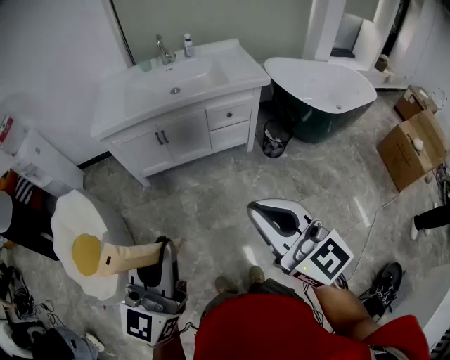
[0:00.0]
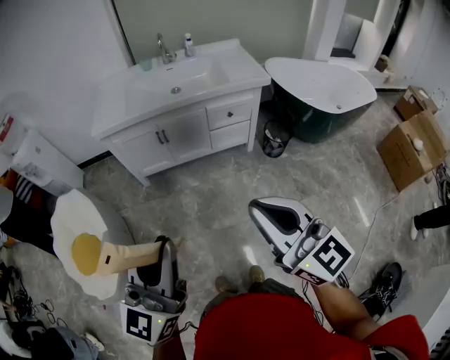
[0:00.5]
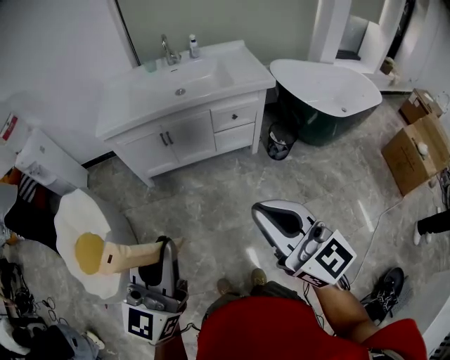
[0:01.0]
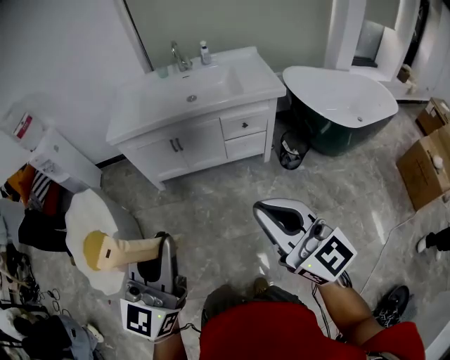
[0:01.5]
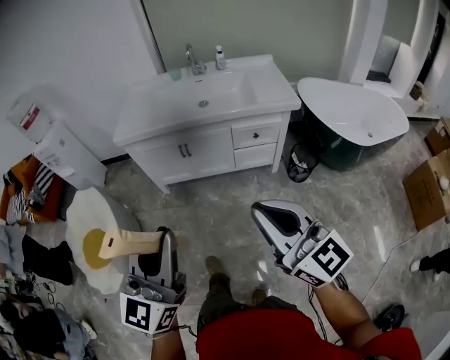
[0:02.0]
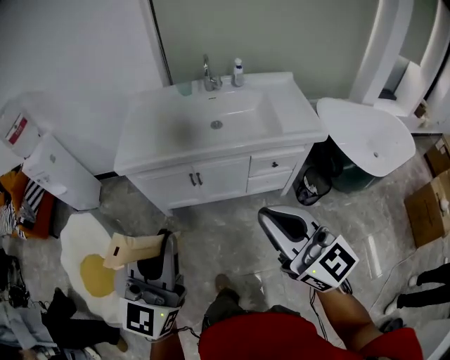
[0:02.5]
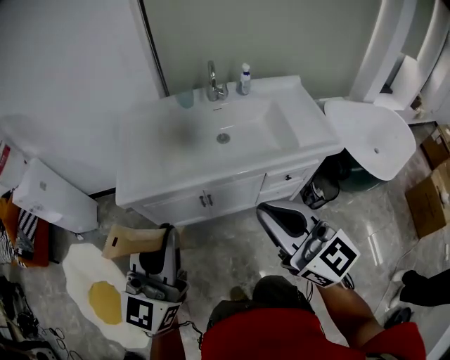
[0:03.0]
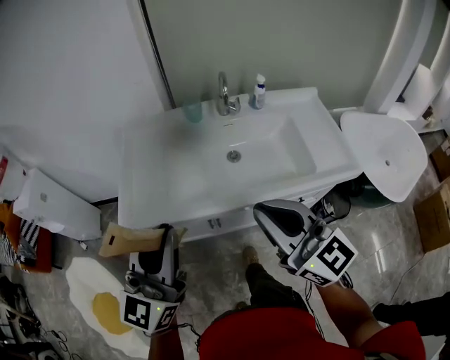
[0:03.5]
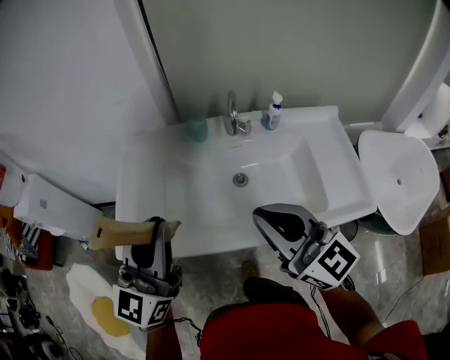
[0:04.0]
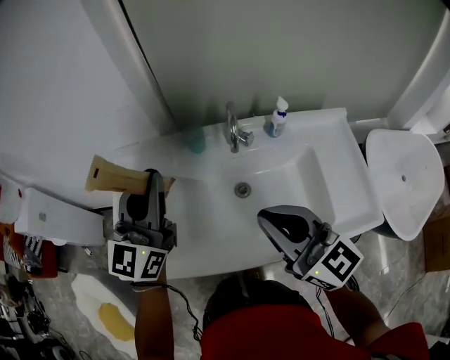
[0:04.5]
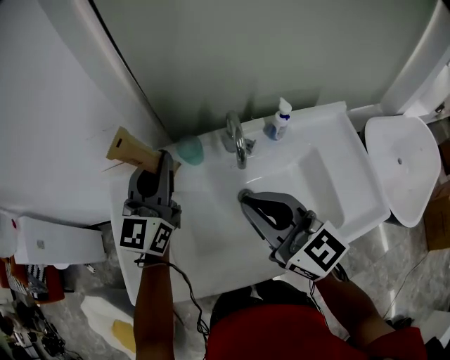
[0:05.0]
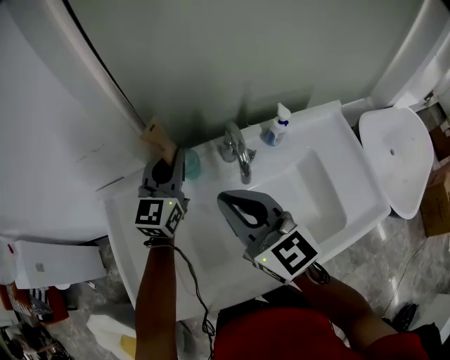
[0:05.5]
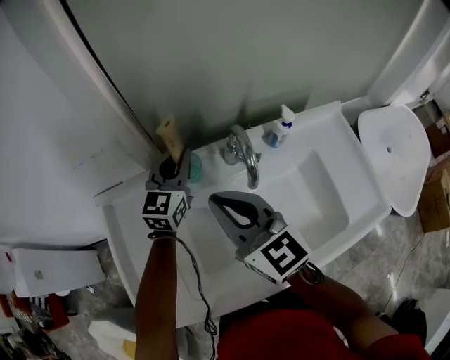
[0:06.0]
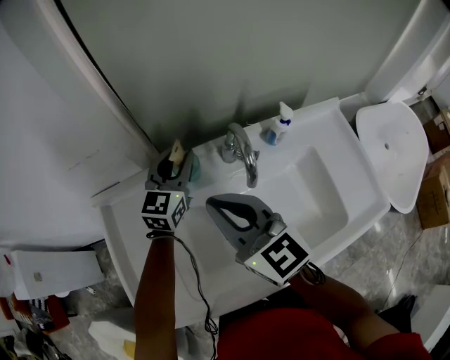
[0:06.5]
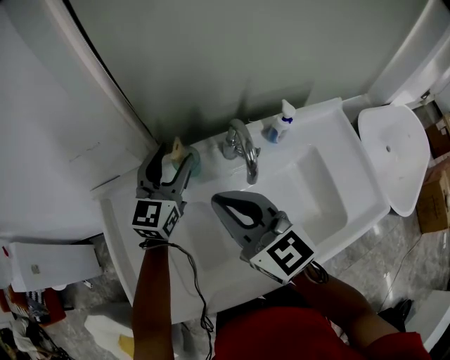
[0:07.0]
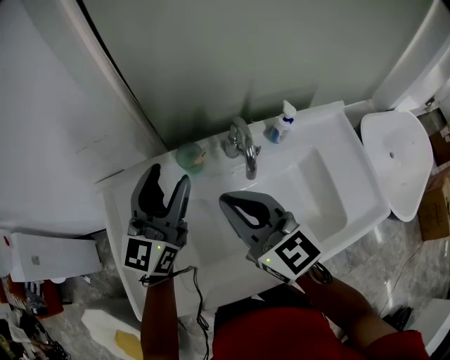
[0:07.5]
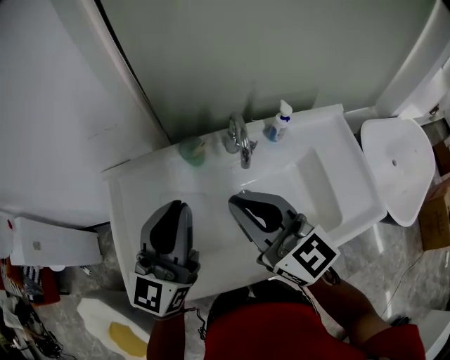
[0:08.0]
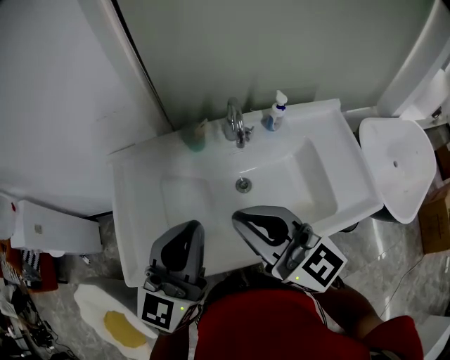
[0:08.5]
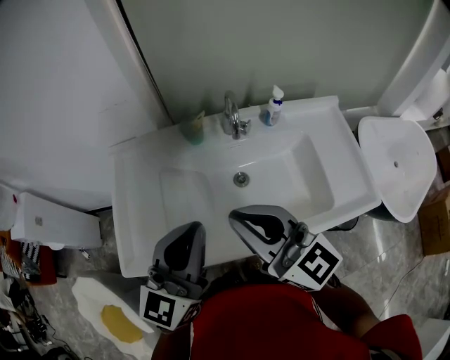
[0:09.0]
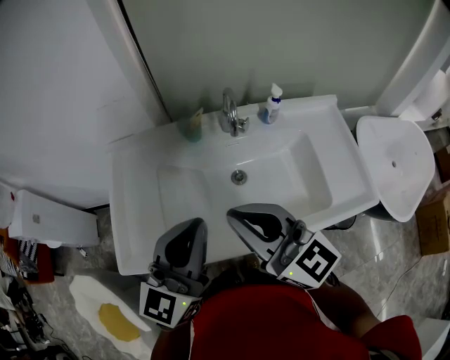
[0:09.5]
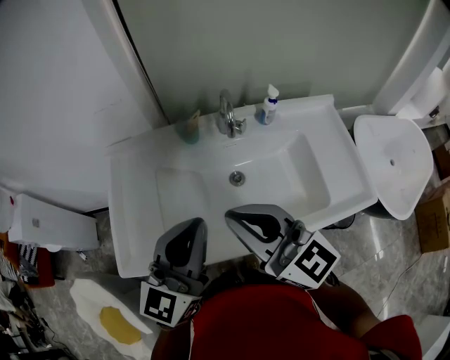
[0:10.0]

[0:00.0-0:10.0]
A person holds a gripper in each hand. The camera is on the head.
0:00.0 to 0:02.0: Both grippers move forward, roughly 10 cm.
0:02.0 to 0:04.0: The pair of grippers is taken forward, roughly 60 cm.
0:04.0 to 0:06.0: The right gripper goes about 25 cm forward, and changes its angle by some 20 degrees; the left gripper is displaced forward by roughly 40 cm, and rotates about 20 degrees.
0:06.0 to 0:08.0: The left gripper heads backward and upward, covering some 25 cm, changes its angle by roughly 20 degrees, and opens, then closes again, while the right gripper is displaced backward and upward by roughly 10 cm.
0:08.0 to 0:10.0: The grippers both shift backward by some 10 cm.

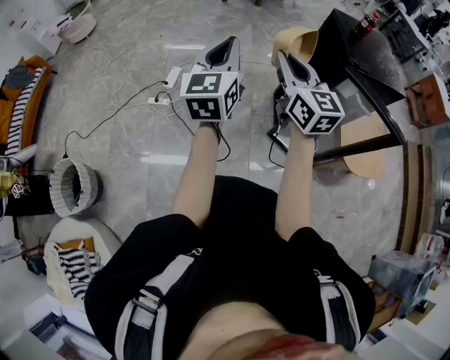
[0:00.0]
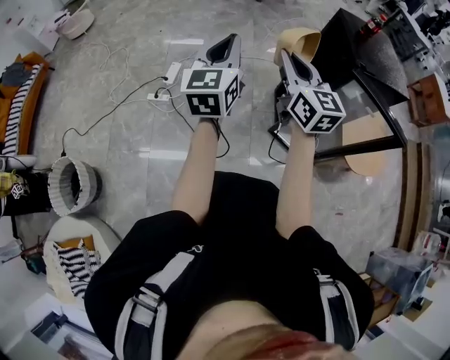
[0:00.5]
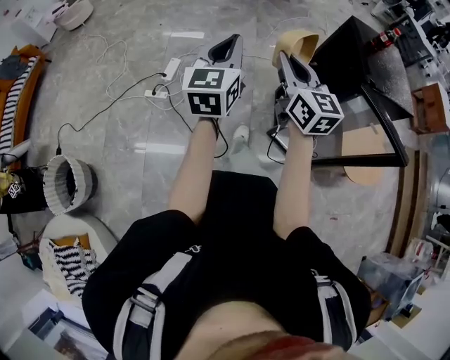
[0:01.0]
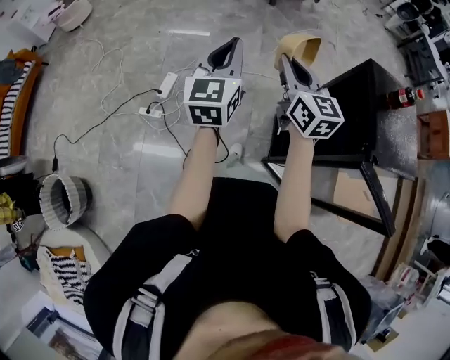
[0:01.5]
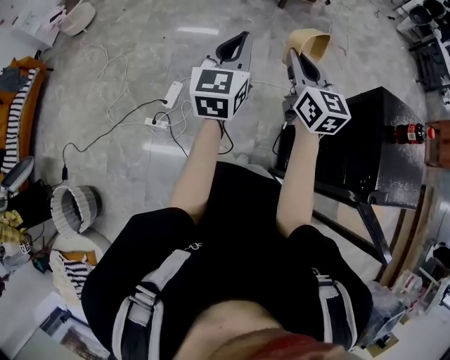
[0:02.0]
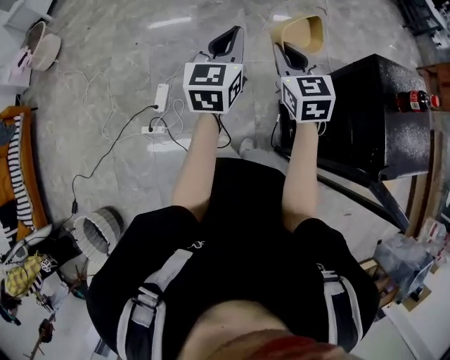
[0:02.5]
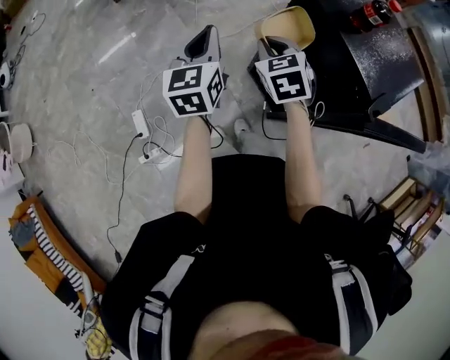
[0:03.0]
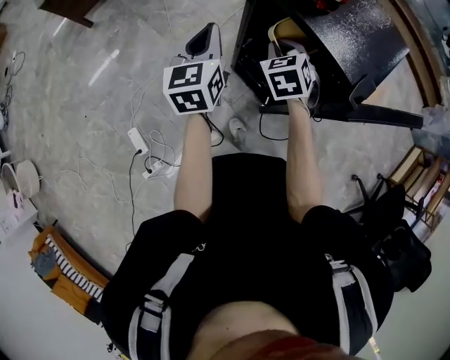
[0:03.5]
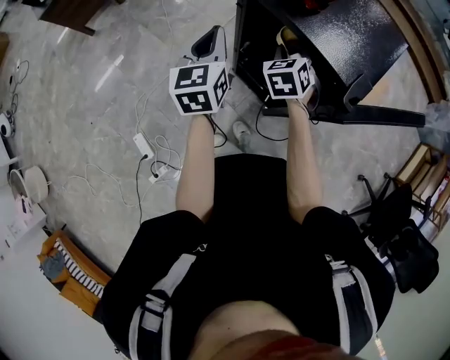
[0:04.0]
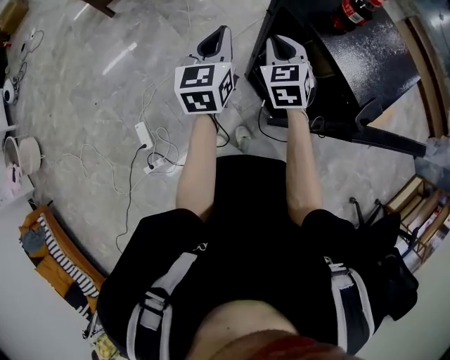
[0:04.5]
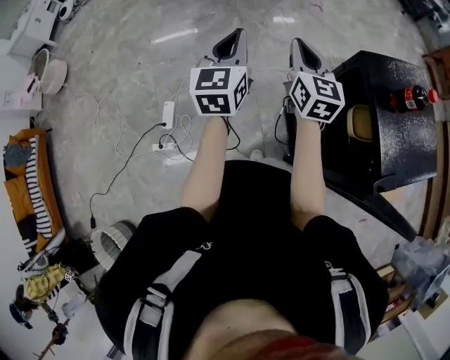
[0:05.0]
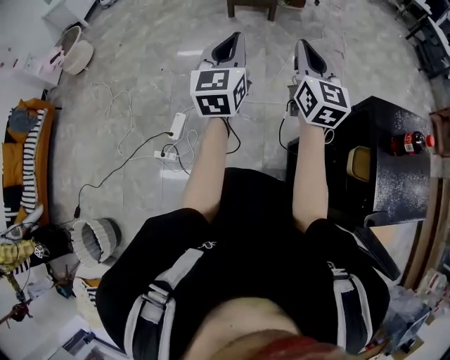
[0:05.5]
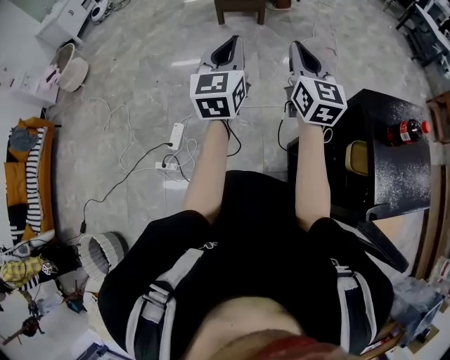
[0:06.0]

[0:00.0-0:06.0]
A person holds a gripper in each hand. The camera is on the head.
0:00.0 to 0:02.0: Both grippers are carried forward, some 40 cm.
0:02.0 to 0:04.0: The left gripper changes place by about 35 cm, and turns by roughly 50 degrees. The right gripper shifts by about 40 cm, and tilts its fingers about 40 degrees downward.
0:04.0 to 0:06.0: The left gripper moves about 30 cm, and swivels approximately 40 degrees. The right gripper moves about 40 cm, and angles its fingers upward, by about 50 degrees.

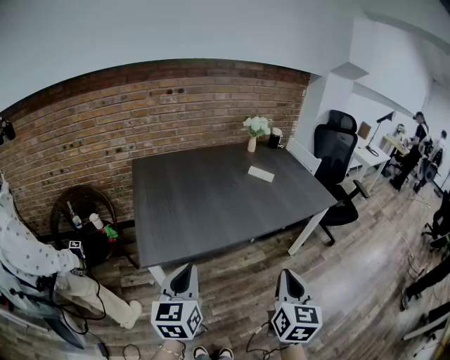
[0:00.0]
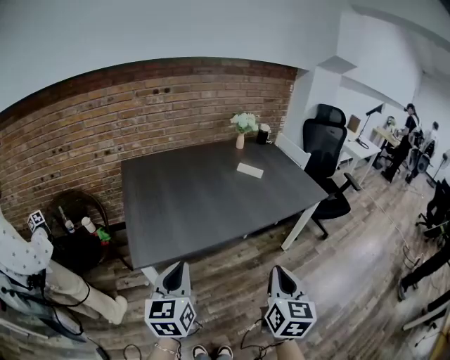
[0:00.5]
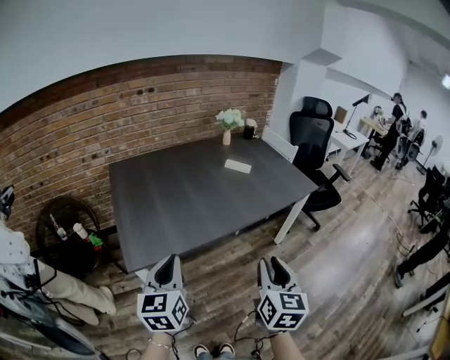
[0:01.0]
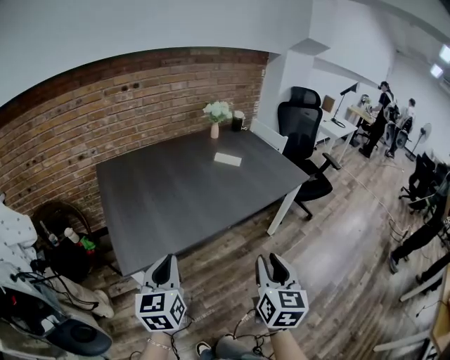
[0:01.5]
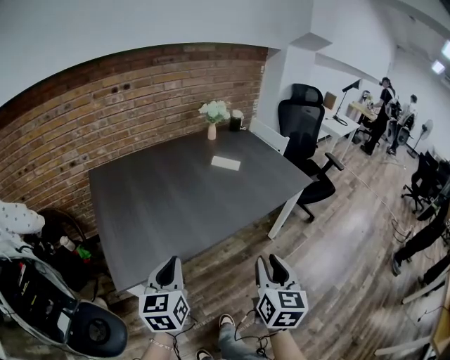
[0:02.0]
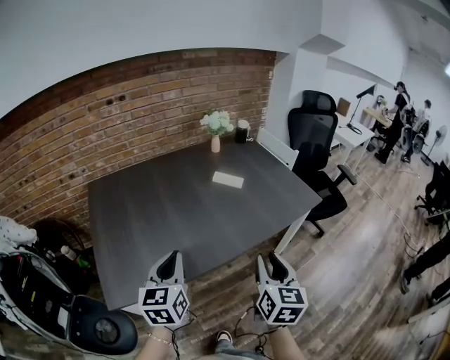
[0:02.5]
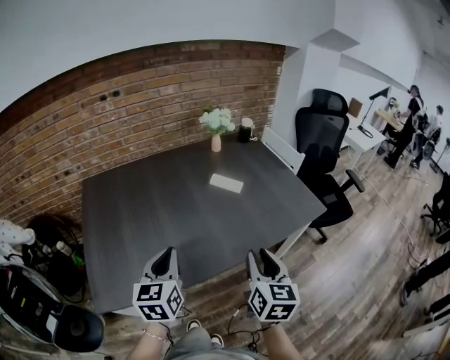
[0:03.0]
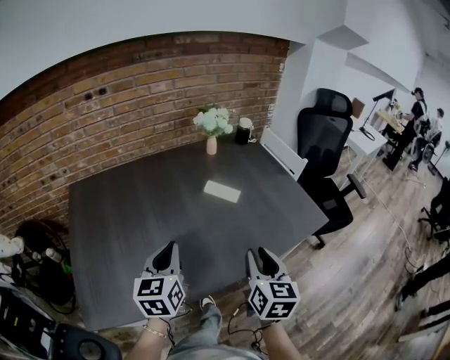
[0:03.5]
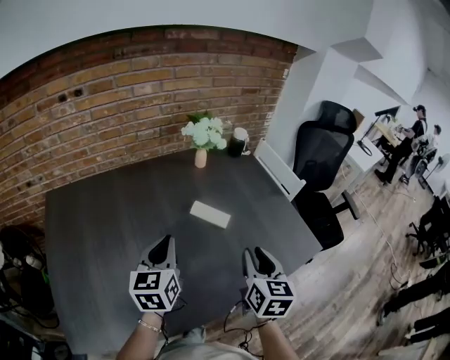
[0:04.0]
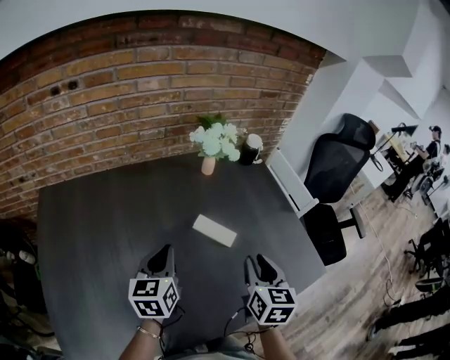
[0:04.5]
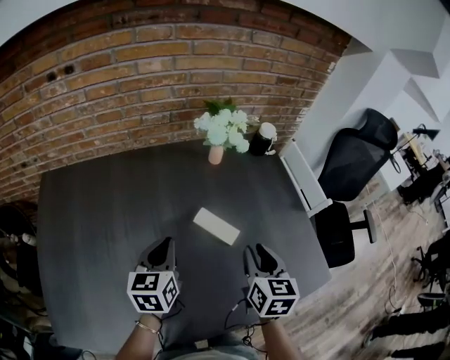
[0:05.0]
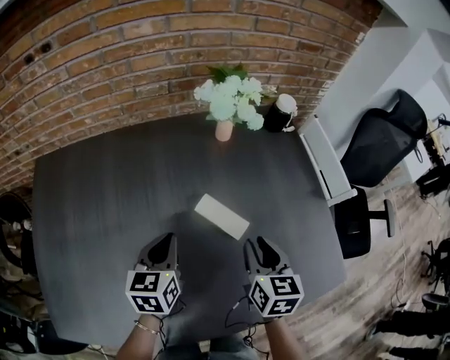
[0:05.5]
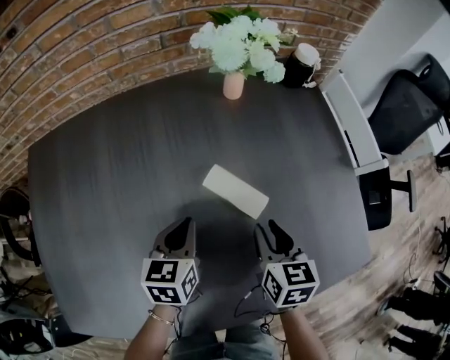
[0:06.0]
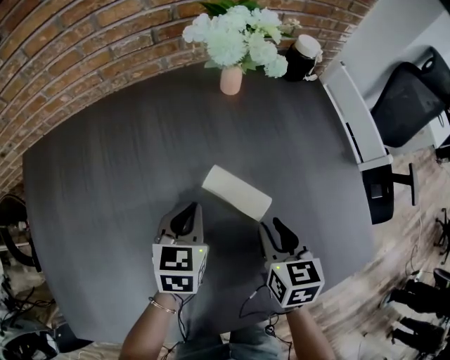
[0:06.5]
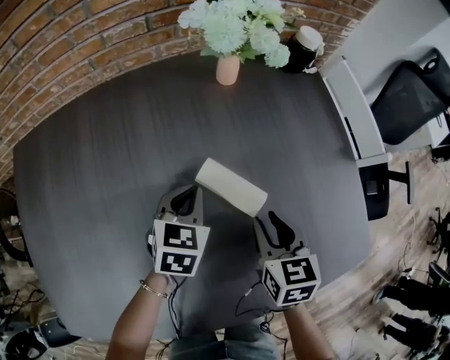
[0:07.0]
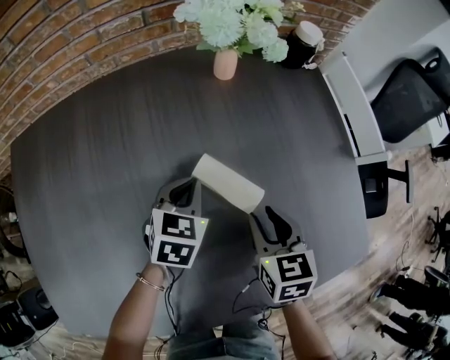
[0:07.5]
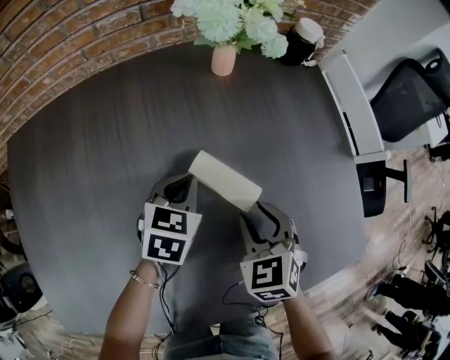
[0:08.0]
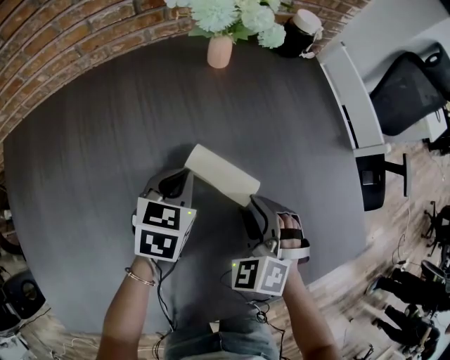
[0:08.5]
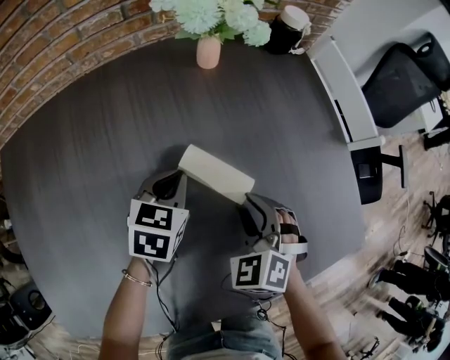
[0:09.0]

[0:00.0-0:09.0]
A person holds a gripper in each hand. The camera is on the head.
0:00.0 to 0:02.0: The two grippers go about 10 cm forward. The right gripper opens its fingers.
0:02.0 to 0:04.5: The pair of grippers is taken forward, roughly 50 cm.
0:04.5 to 0:07.0: The left gripper moves downward, forward and to the right, roughly 25 cm, and changes its angle by approximately 30 degrees. Meanwhile the right gripper goes some 20 cm downward and forward, and turns by approximately 20 degrees.
0:07.0 to 0:09.0: The right gripper rolls counterclockwise, seen from behind, by about 50 degrees.

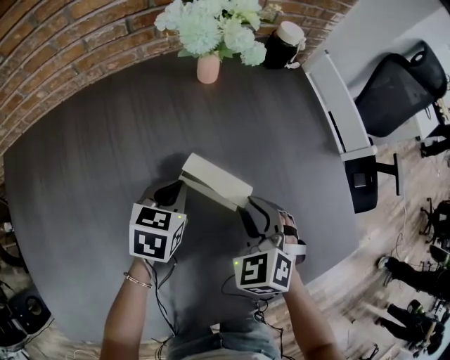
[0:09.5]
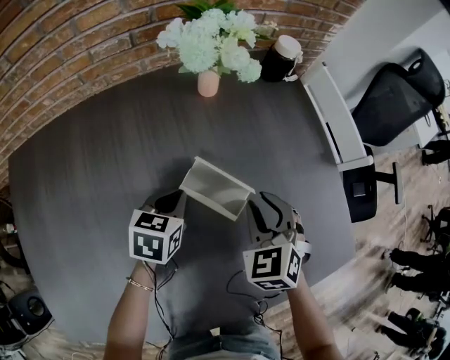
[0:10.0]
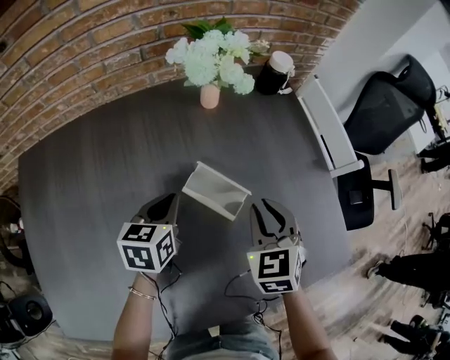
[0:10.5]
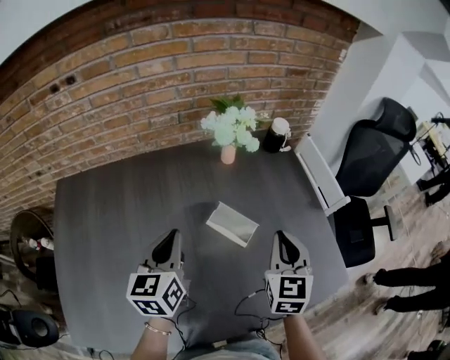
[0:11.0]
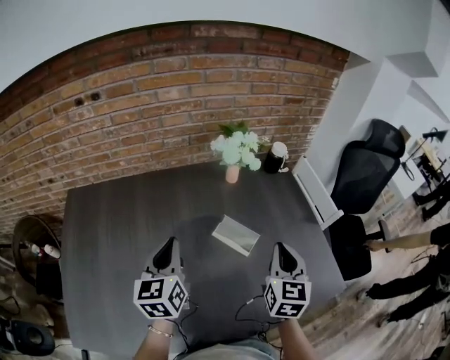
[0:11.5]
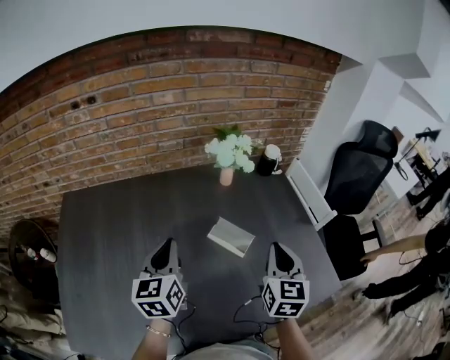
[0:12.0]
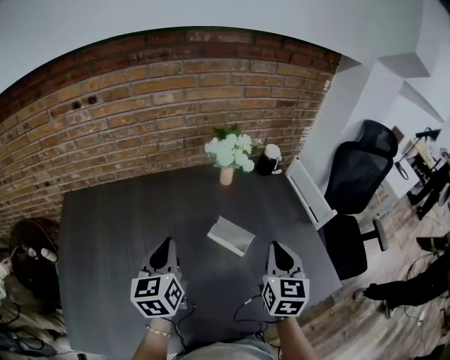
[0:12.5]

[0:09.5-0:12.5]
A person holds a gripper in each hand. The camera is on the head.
0:09.5 to 0:11.0: The right gripper goes about 20 cm upward, swivels about 40 degrees, and closes its fingers; the left gripper is displaced upward and backward by some 25 cm, and tilts its fingers some 30 degrees upward.
0:11.0 to 0:12.5: The left gripper ends up approximately 5 cm from where it was; the right gripper changes place by roughly 5 cm.
